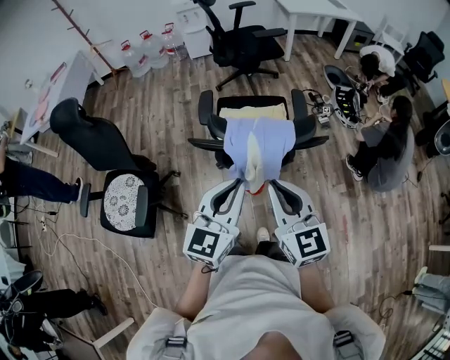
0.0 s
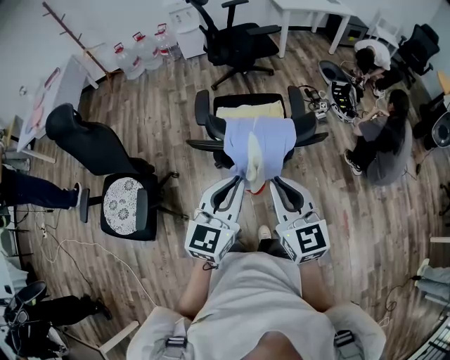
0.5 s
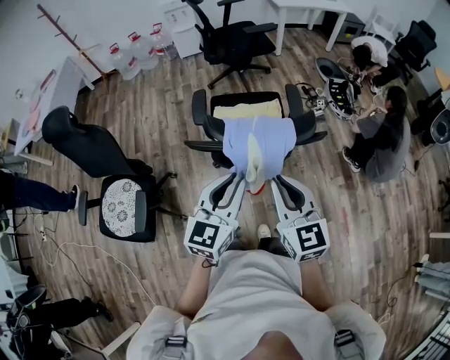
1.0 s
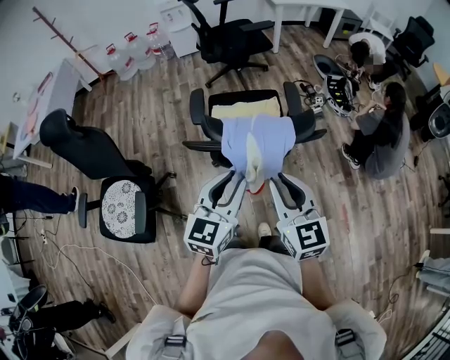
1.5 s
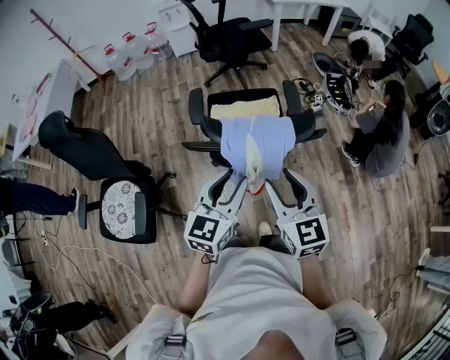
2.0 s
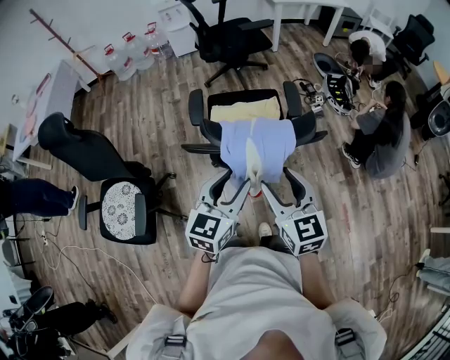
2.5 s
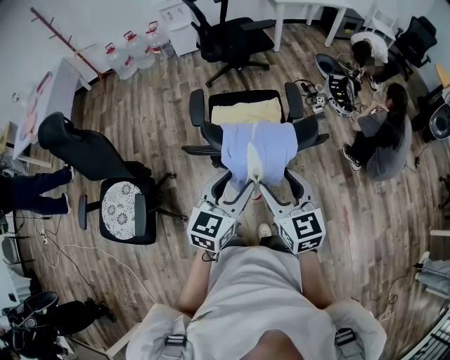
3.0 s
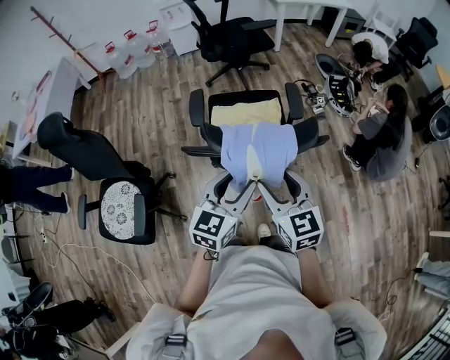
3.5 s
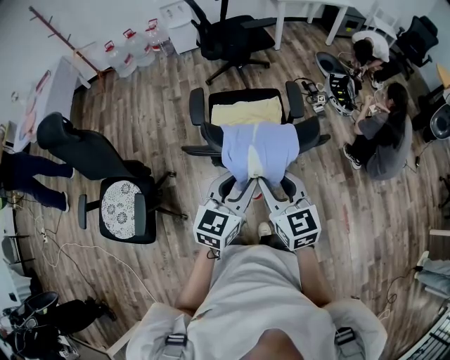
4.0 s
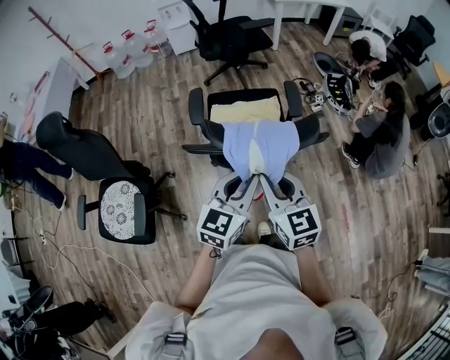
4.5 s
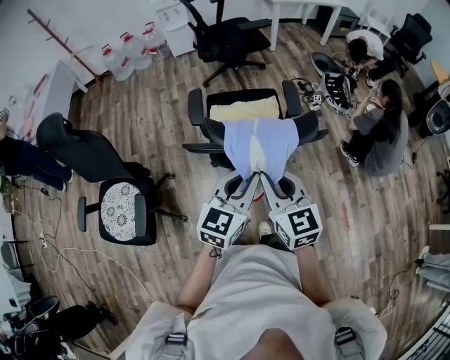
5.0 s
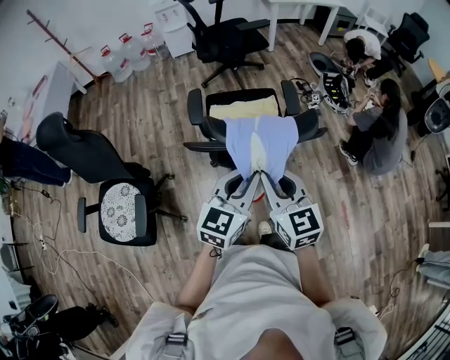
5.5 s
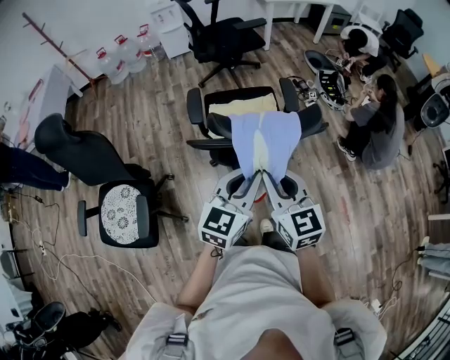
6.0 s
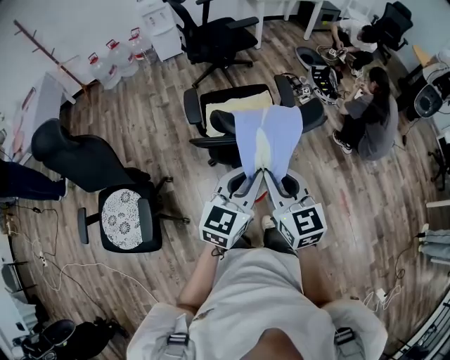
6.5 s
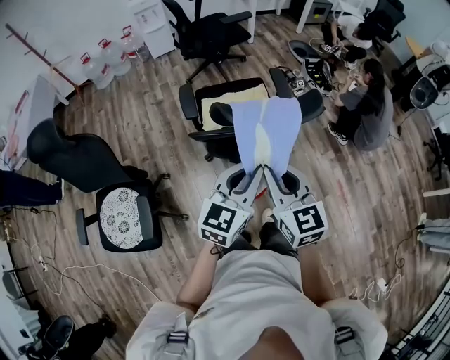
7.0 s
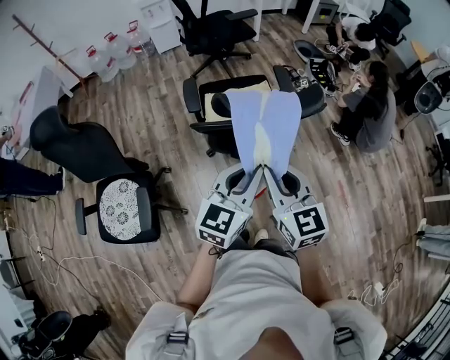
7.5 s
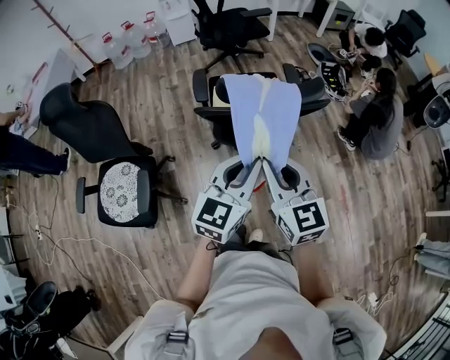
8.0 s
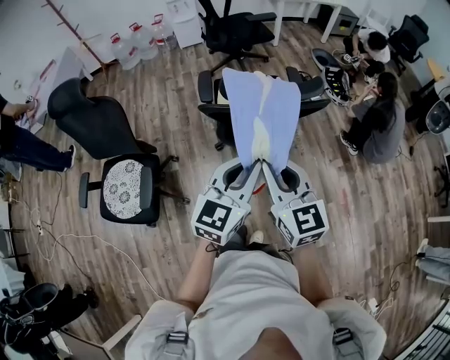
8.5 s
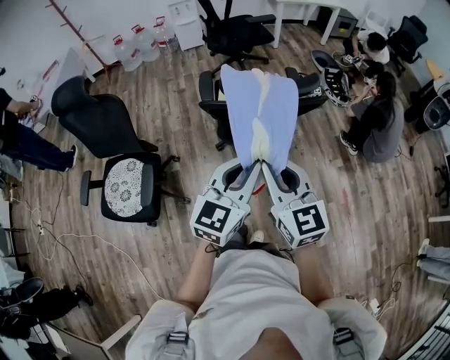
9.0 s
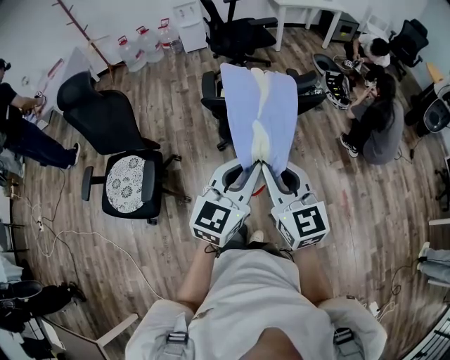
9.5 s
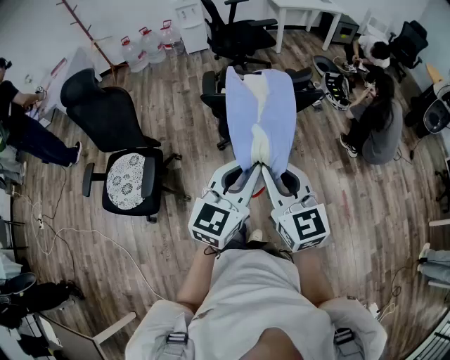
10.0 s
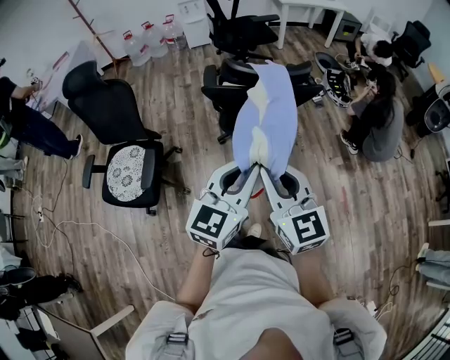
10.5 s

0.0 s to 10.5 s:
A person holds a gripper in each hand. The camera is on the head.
0.0 to 2.0 s: The right gripper opens up. The left gripper ends up some 5 cm from where it was, and opens.
2.0 to 4.0 s: The right gripper ends up about 5 cm from where it was.
4.0 to 6.5 s: The right gripper is displaced backward by some 5 cm. The left gripper shifts by approximately 5 cm, and closes up.
6.5 to 8.5 s: Both grippers travel together backward, approximately 10 cm.
8.5 to 10.5 s: Both grippers travel together backward, approximately 10 cm.

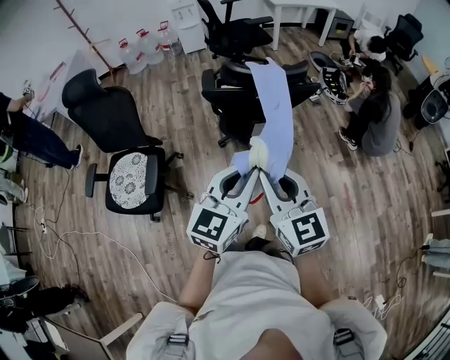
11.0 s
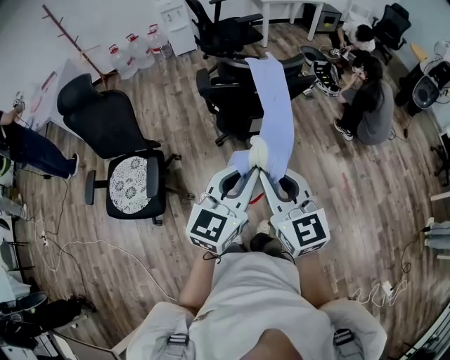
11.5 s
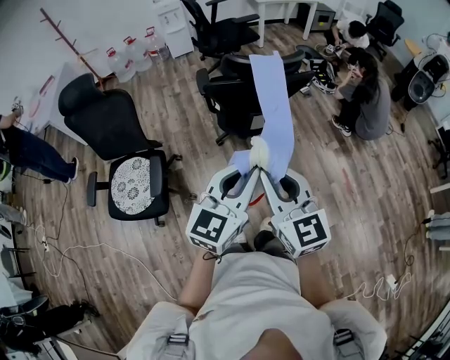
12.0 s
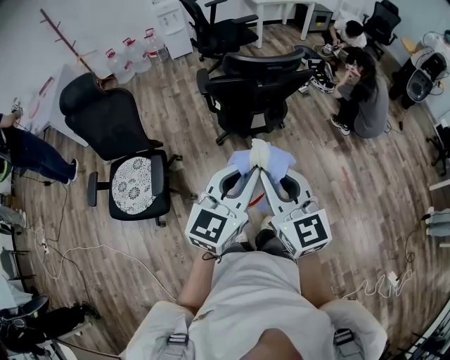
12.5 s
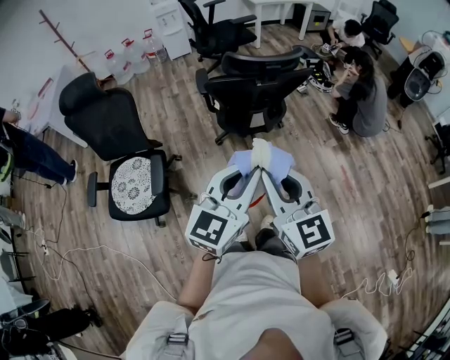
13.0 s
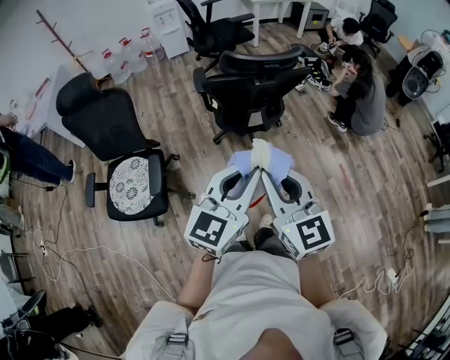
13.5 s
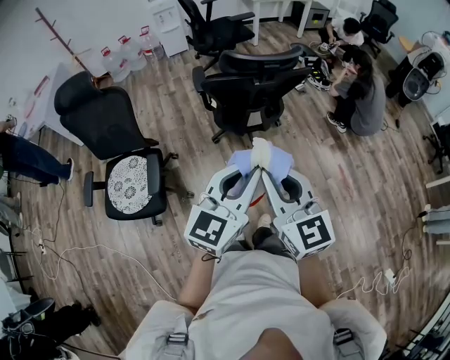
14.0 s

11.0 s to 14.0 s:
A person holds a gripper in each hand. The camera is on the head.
11.0 to 12.5 s: Both grippers move backward and to the left, roughly 10 cm.
12.5 to 14.0 s: The grippers make only small movements.

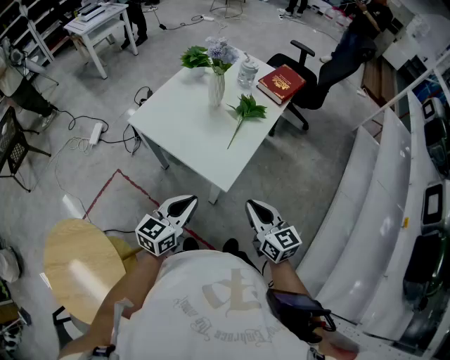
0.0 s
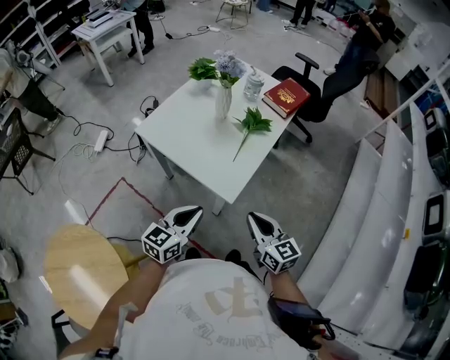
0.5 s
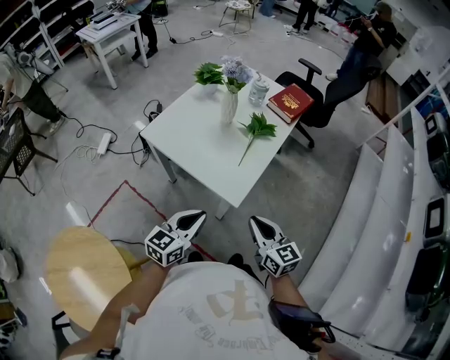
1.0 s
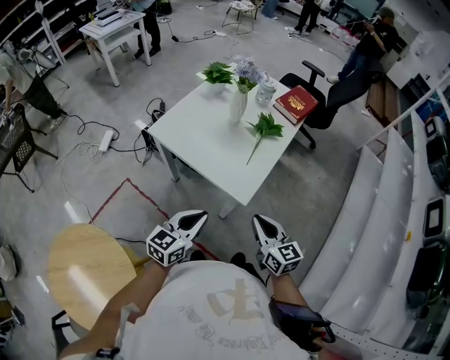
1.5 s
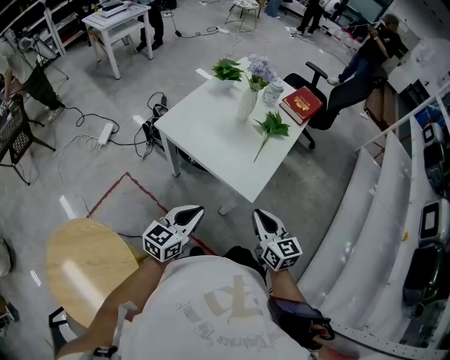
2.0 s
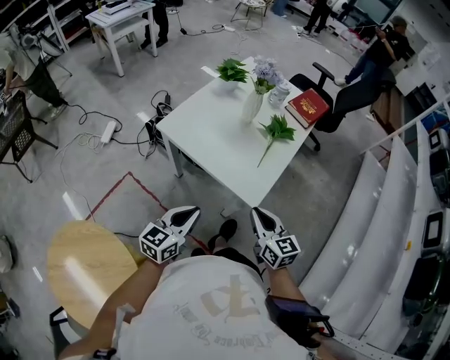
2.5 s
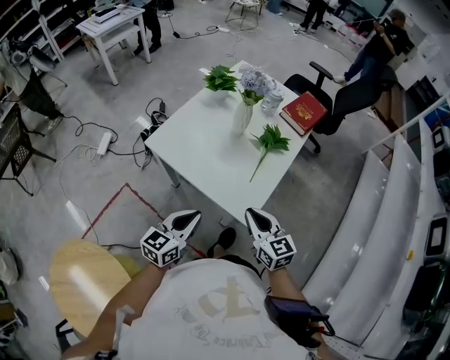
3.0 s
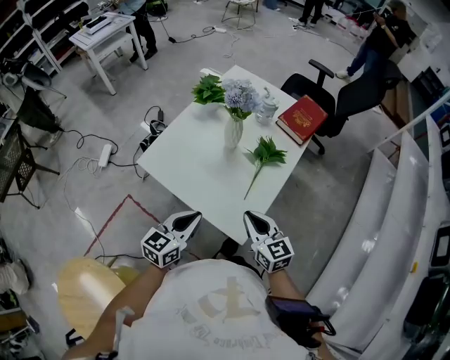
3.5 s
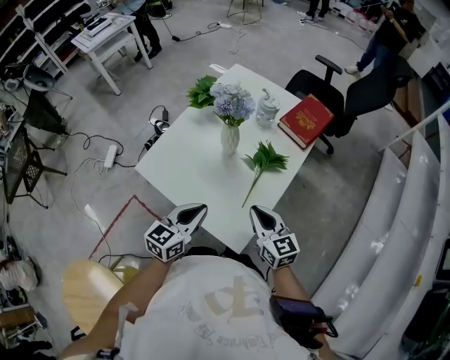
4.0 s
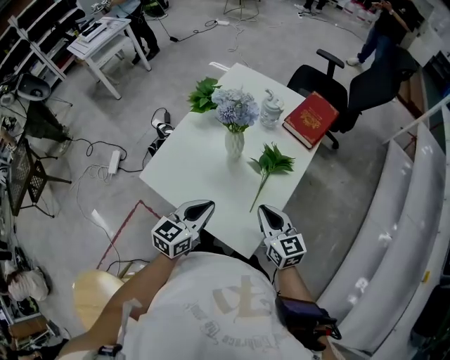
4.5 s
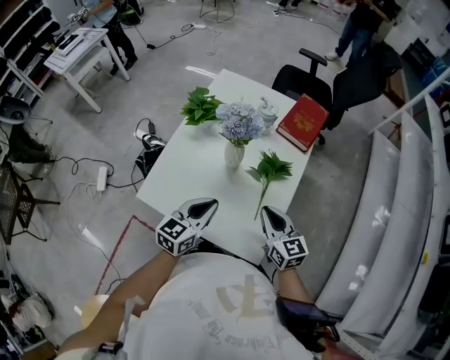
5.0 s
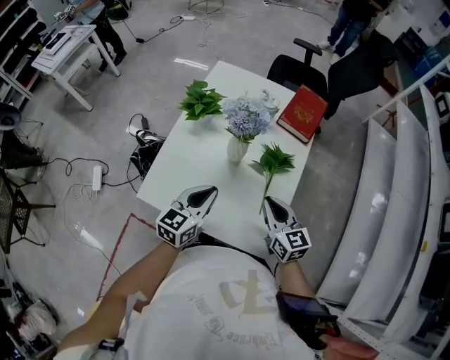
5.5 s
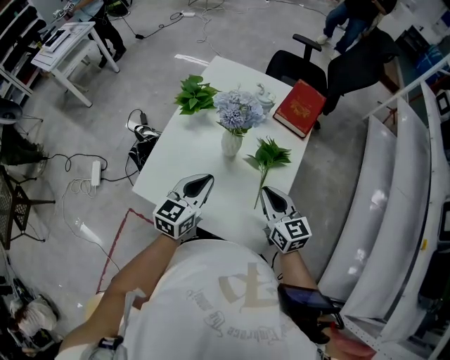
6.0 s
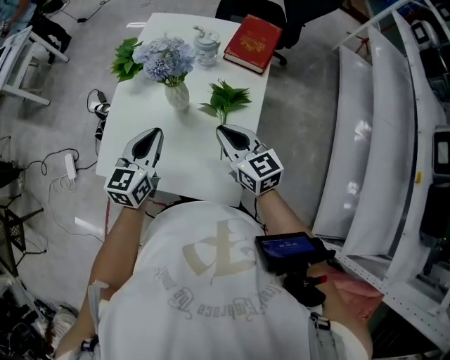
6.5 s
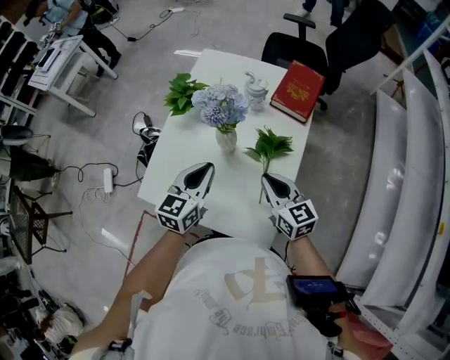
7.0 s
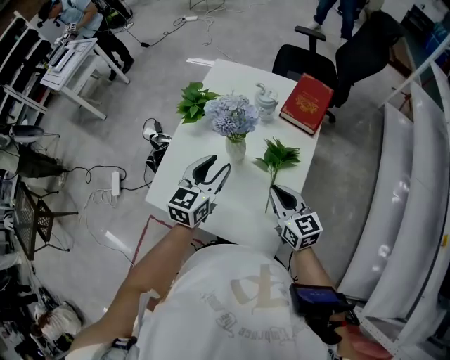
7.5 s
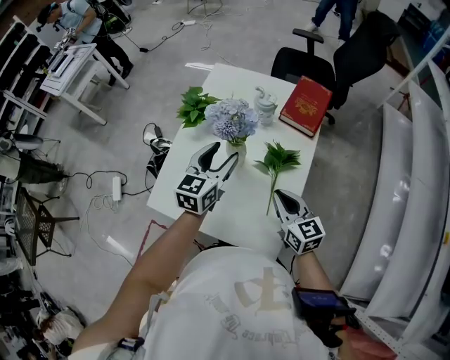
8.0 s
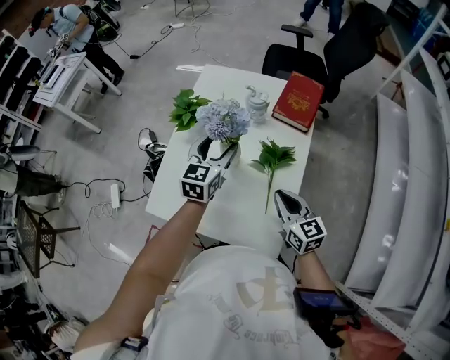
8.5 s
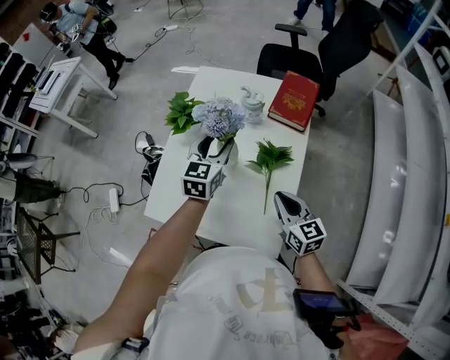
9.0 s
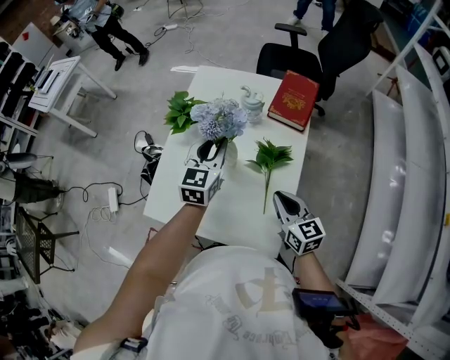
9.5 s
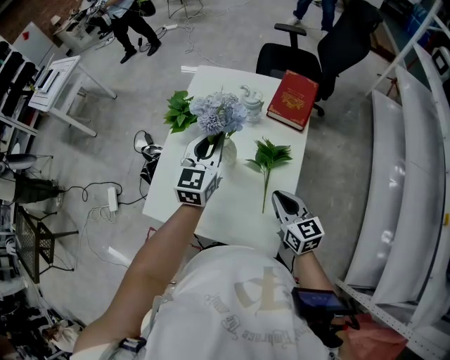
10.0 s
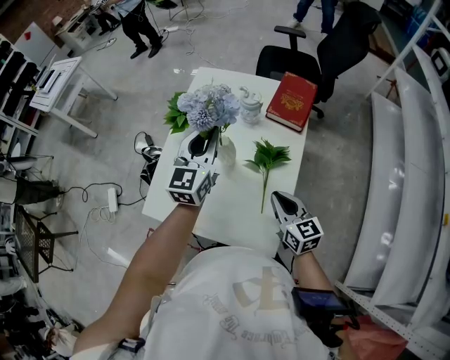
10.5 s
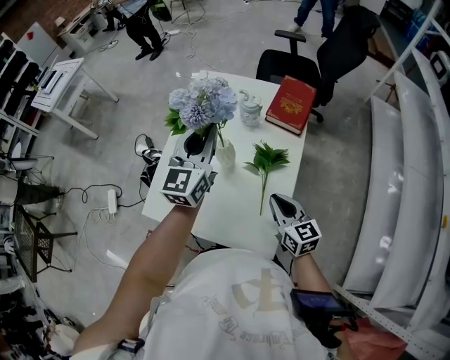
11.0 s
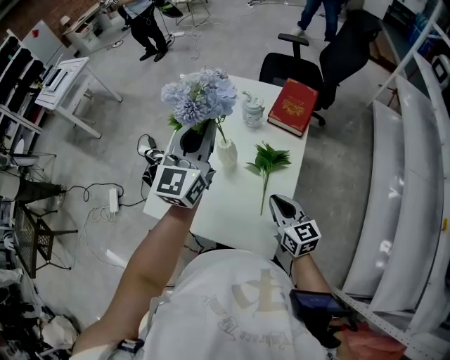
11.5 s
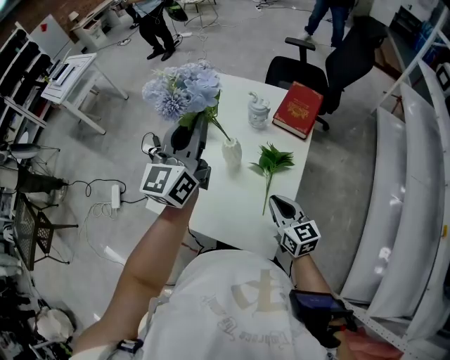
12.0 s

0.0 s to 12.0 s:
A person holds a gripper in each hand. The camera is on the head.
0.0 to 2.0 s: Both grippers move to the left, about 10 cm.
2.0 to 4.0 s: The two grippers go about 25 cm forward.
4.0 to 6.0 s: The right gripper heads forward, covering some 5 cm. Meanwhile the left gripper shifts some 15 cm forward and to the left.
6.0 to 8.0 s: The left gripper travels forward by about 10 cm, and opens.
8.0 to 10.0 s: The left gripper ends up roughly 5 cm from where it was, and closes.
10.0 to 12.0 s: The left gripper goes approximately 15 cm upward, and changes its angle by some 30 degrees.

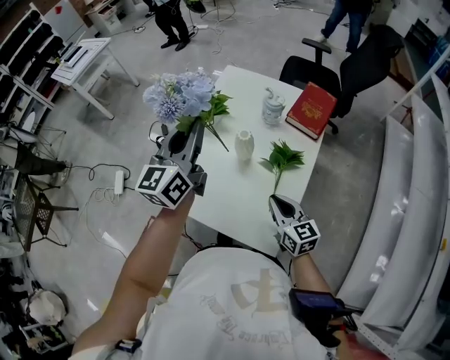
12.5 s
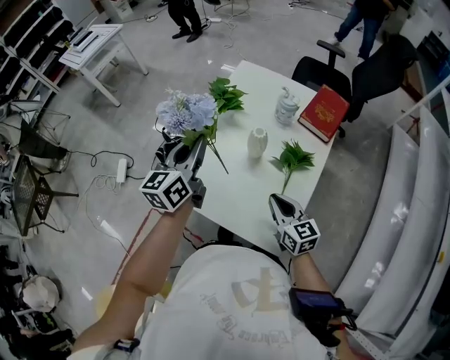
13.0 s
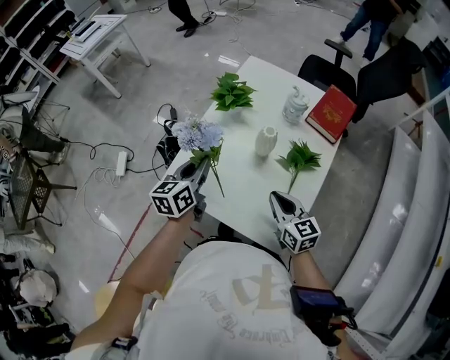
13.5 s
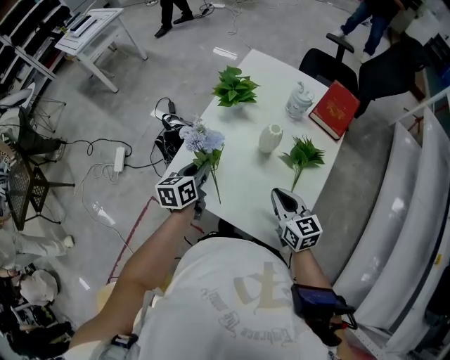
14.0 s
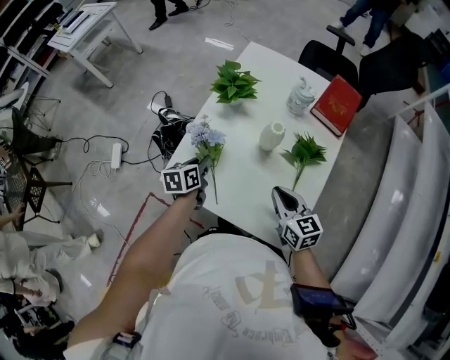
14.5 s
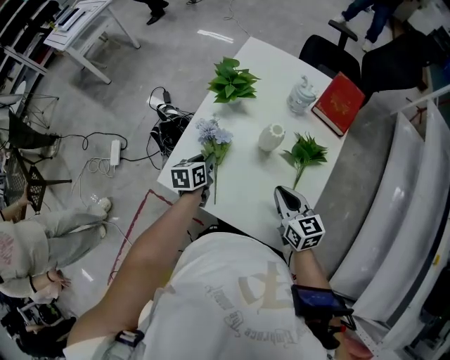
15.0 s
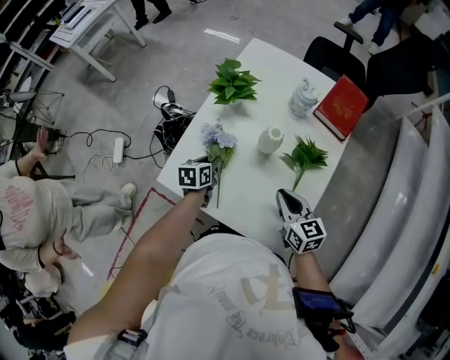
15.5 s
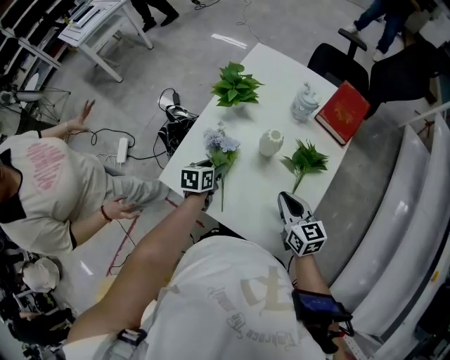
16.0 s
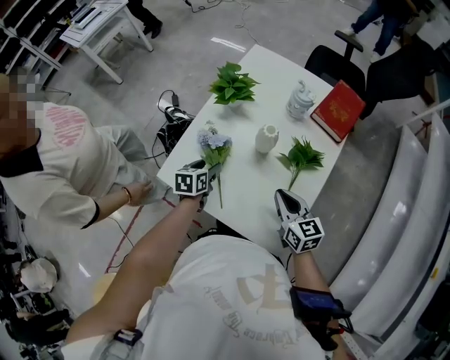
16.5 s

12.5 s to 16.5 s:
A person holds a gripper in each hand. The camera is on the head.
12.5 to 14.5 s: The right gripper goes about 5 cm to the left, while the left gripper is displaced downward by about 35 cm, and points its fingers some 50 degrees further downward.
14.5 to 16.5 s: The left gripper opens.
